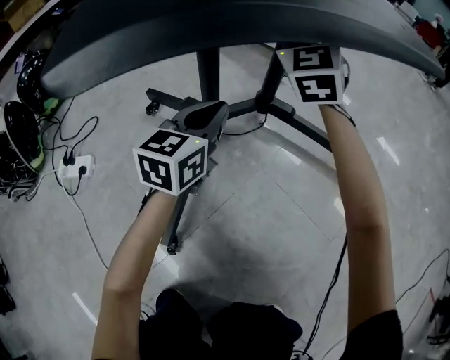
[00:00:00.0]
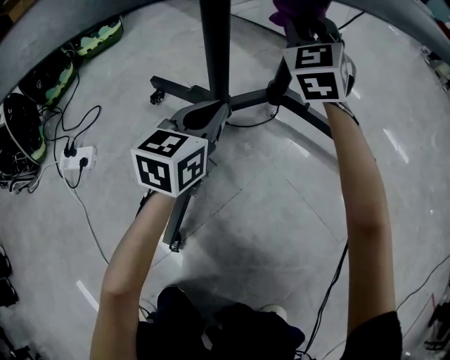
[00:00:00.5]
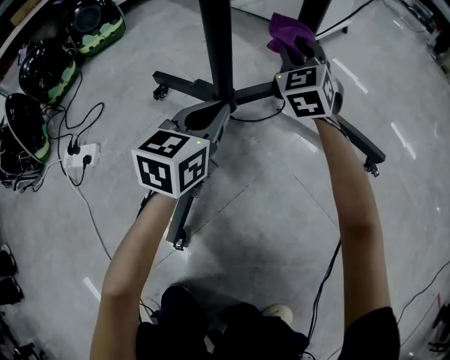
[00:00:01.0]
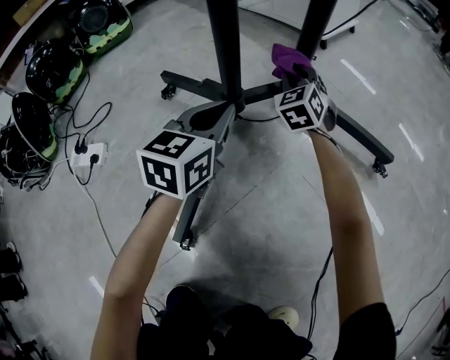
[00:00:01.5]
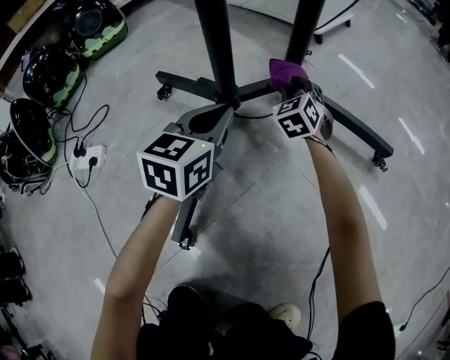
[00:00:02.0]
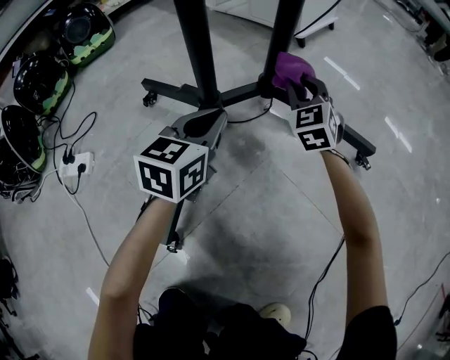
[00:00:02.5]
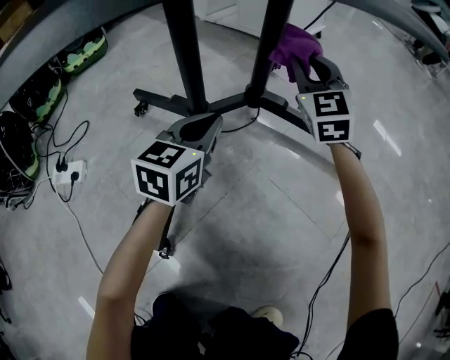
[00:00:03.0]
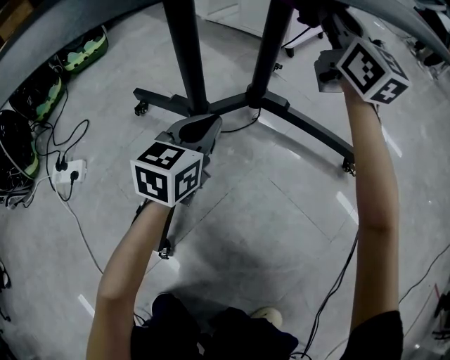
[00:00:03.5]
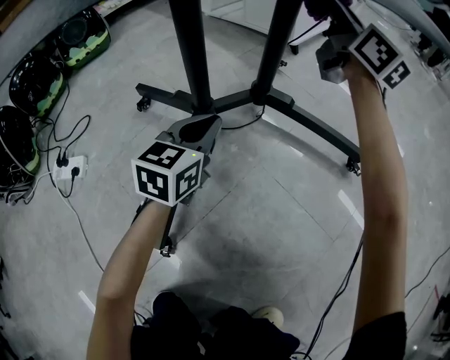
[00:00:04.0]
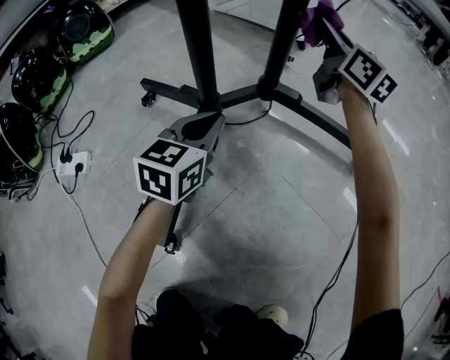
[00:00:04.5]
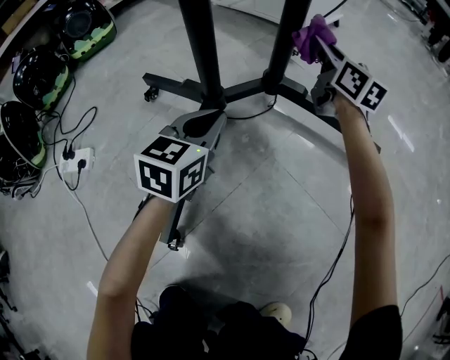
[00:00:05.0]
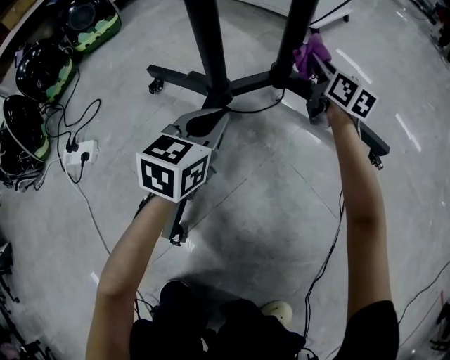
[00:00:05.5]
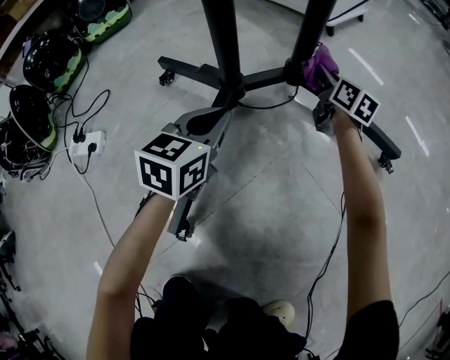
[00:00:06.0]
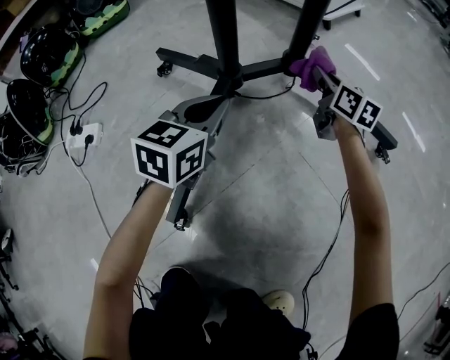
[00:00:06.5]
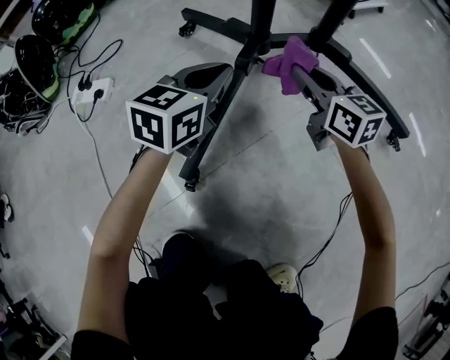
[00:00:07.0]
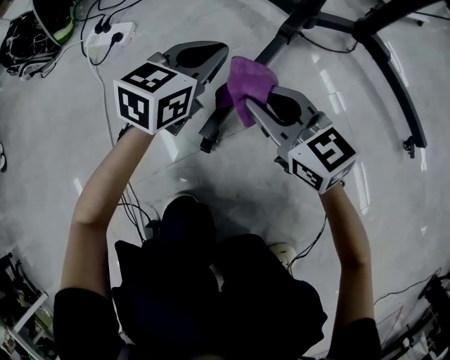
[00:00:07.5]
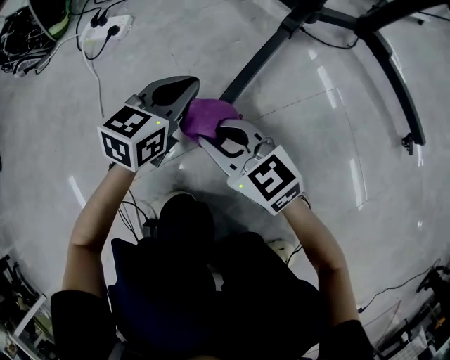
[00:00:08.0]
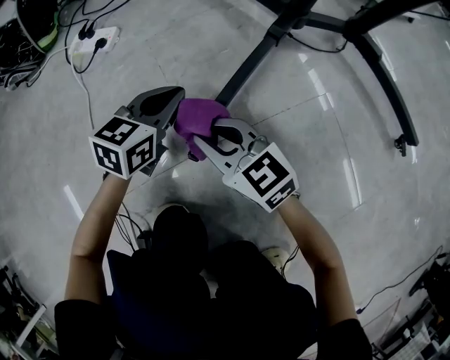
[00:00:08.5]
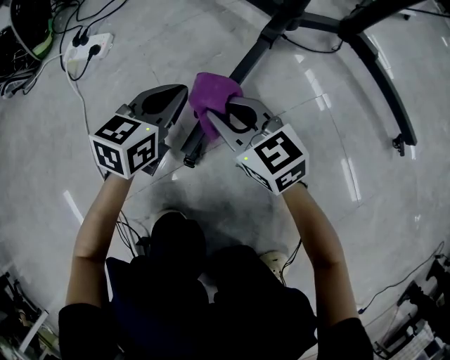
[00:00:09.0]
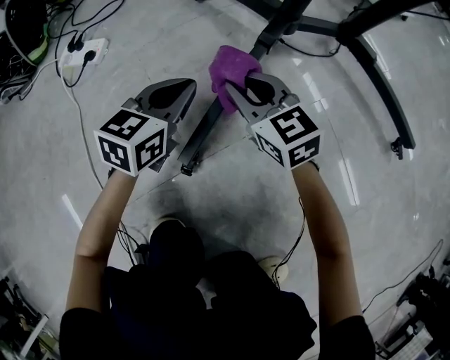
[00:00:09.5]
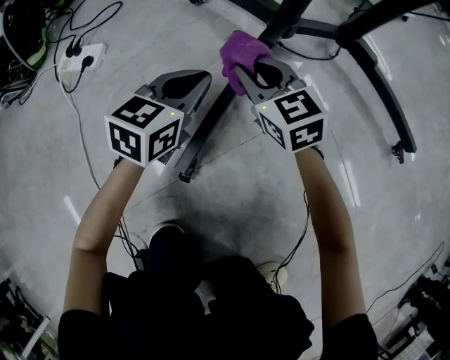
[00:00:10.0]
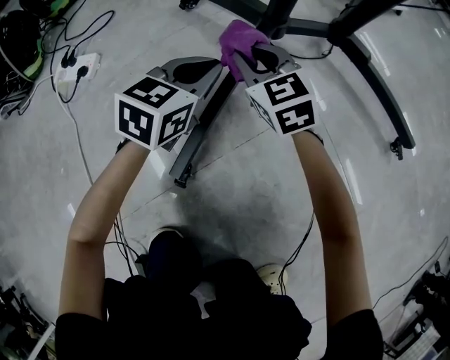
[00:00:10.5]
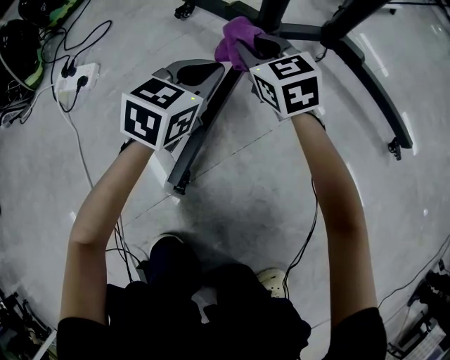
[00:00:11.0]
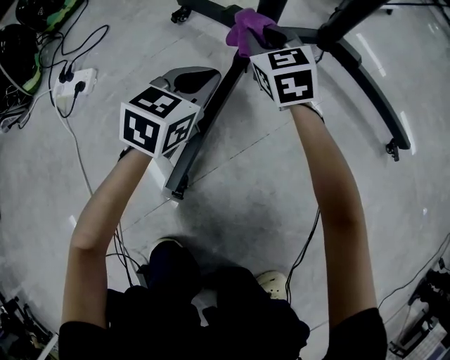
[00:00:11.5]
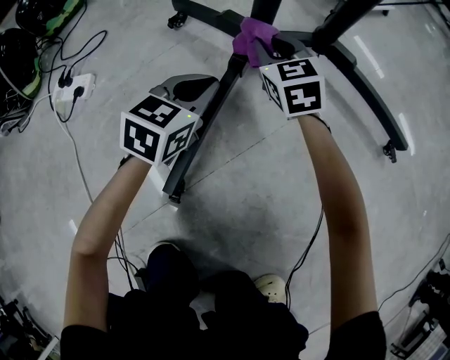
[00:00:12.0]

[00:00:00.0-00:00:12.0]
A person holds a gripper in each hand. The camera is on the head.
00:00:00.0 to 00:00:02.0: The right gripper shifts approximately 35 cm downward, and changes its angle by about 30 degrees, while the left gripper is displaced downward by roughly 10 cm.
00:00:02.0 to 00:00:04.0: The right gripper moves upward, approximately 35 cm, and tips its fingers upward by approximately 50 degrees.
00:00:04.0 to 00:00:06.0: The right gripper goes about 35 cm downward, and tips its fingers downward by about 30 degrees; the left gripper shifts by some 5 cm.
00:00:06.0 to 00:00:08.0: The right gripper ends up about 60 cm from where it was, and swivels about 70 degrees. The left gripper shifts by approximately 25 cm.
00:00:08.0 to 00:00:10.0: The left gripper shifts roughly 10 cm to the right and forward, while the right gripper goes approximately 25 cm forward and to the right, and changes its angle by roughly 20 degrees.
00:00:10.0 to 00:00:12.0: The left gripper heads to the right, covering some 5 cm; the right gripper is displaced forward and to the right by roughly 15 cm.

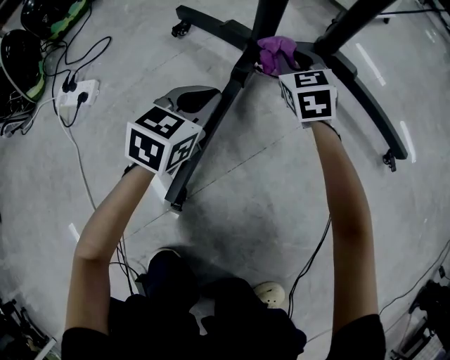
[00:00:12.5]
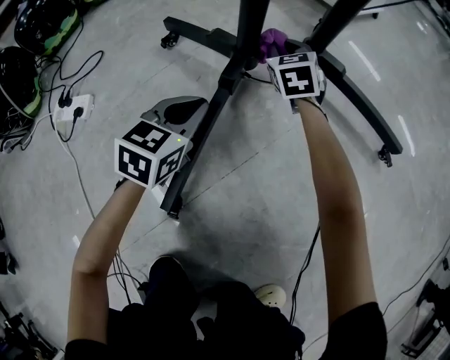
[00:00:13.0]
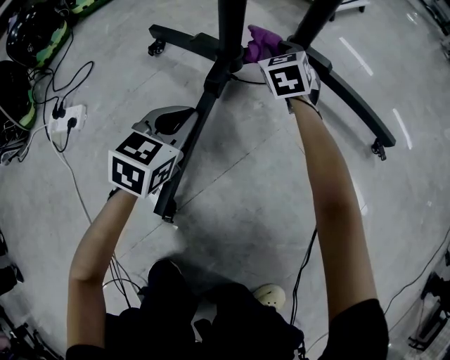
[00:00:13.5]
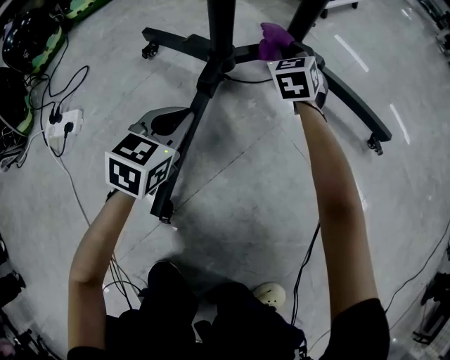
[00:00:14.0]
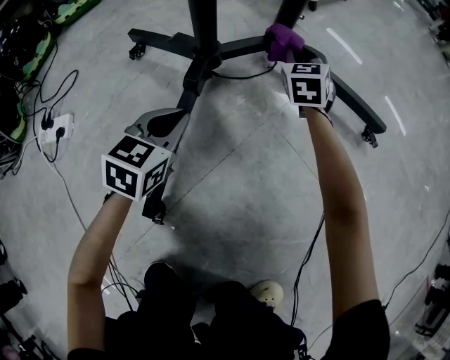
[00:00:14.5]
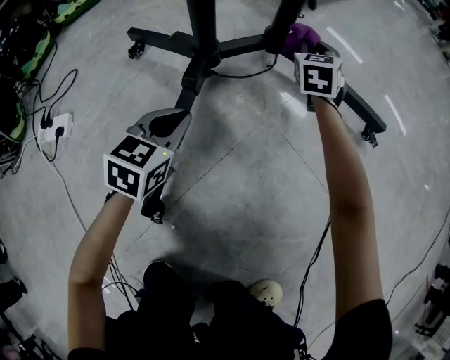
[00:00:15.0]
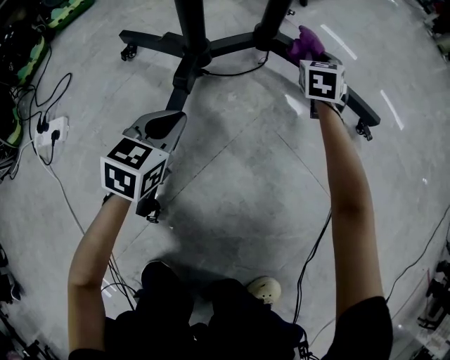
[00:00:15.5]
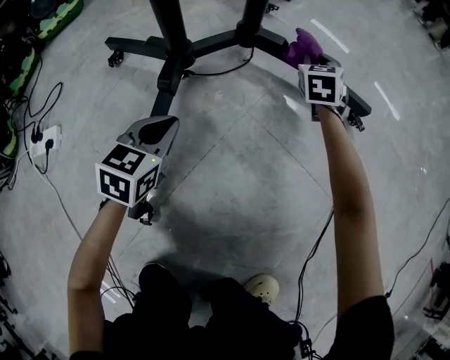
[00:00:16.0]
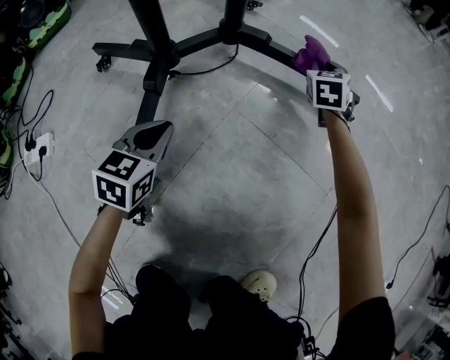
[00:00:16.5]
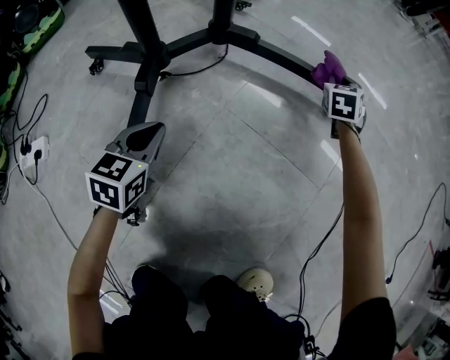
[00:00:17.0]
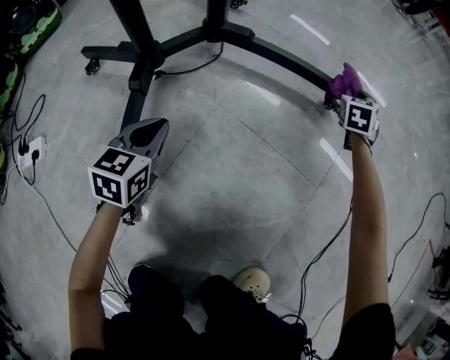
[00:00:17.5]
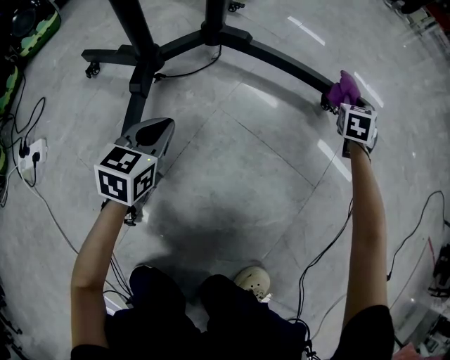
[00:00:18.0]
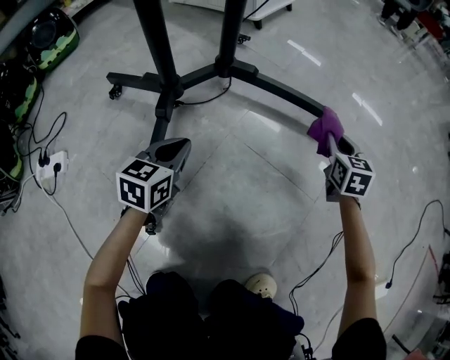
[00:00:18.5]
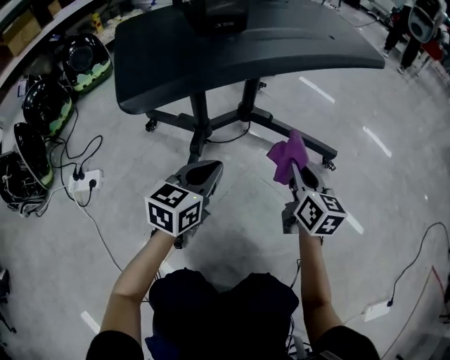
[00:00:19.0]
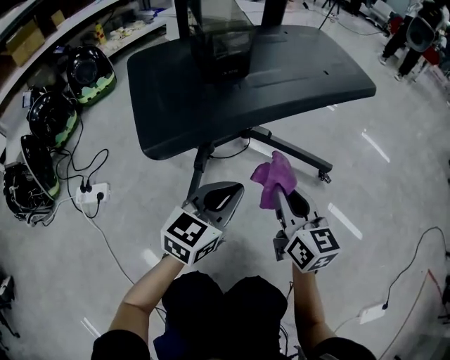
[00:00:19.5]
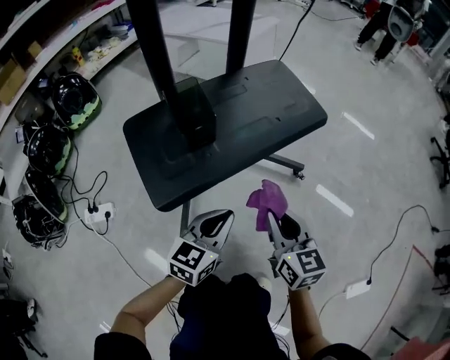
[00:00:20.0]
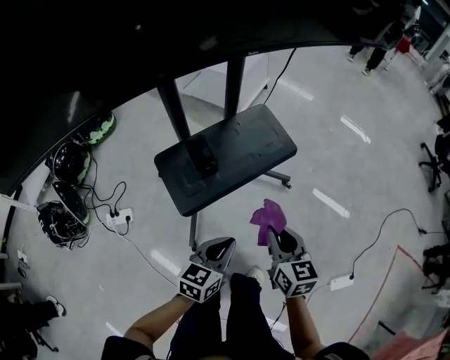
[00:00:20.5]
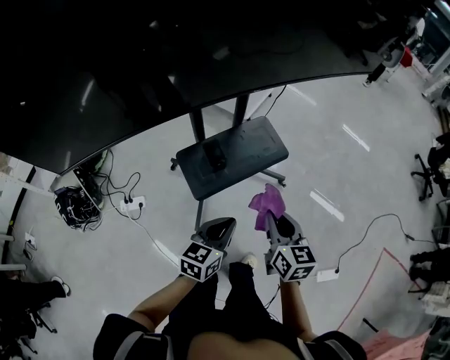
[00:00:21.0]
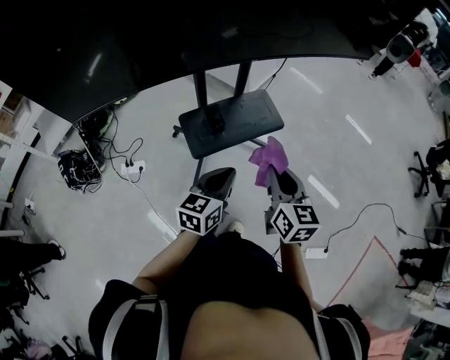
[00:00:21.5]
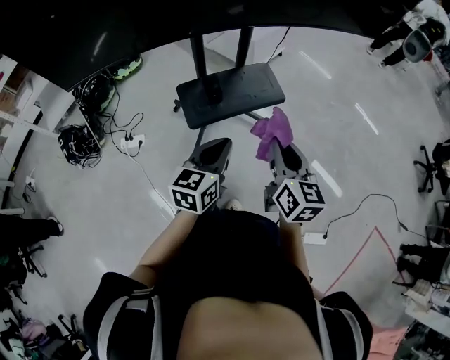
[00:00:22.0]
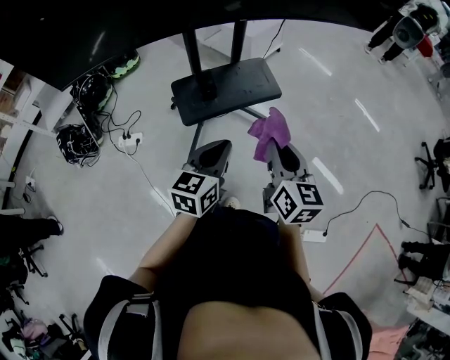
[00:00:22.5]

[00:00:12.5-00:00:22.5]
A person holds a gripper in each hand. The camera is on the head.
00:00:12.5 to 00:00:14.5: The right gripper heads to the right and forward, covering approximately 15 cm, and changes its angle by approximately 20 degrees.
00:00:14.5 to 00:00:16.5: The right gripper heads to the right, covering some 20 cm, while the left gripper shifts about 5 cm to the right.
00:00:16.5 to 00:00:18.5: The right gripper moves backward, to the right and upward, approximately 20 cm. Meanwhile the left gripper moves roughly 5 cm.
00:00:18.5 to 00:00:20.5: The right gripper shifts about 60 cm upward and backward, and rotates some 20 degrees, while the left gripper goes about 50 cm upward.
00:00:20.5 to 00:00:22.5: The grippers both shift upward by some 25 cm. The left gripper rotates about 20 degrees.

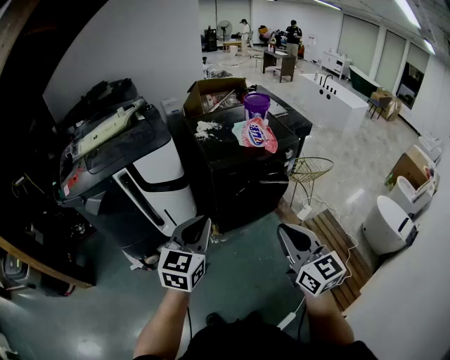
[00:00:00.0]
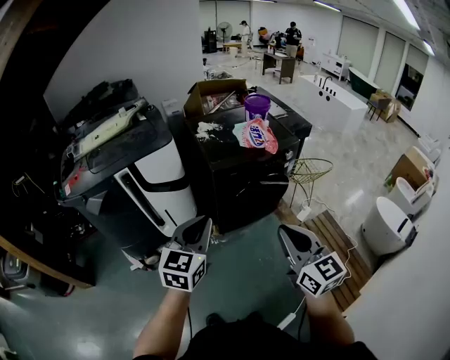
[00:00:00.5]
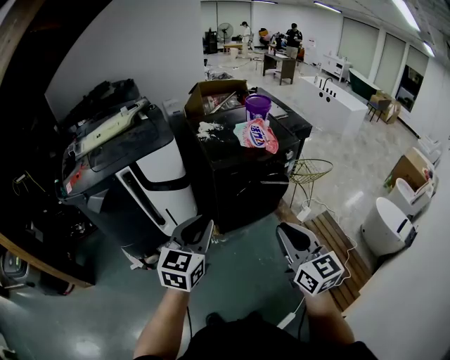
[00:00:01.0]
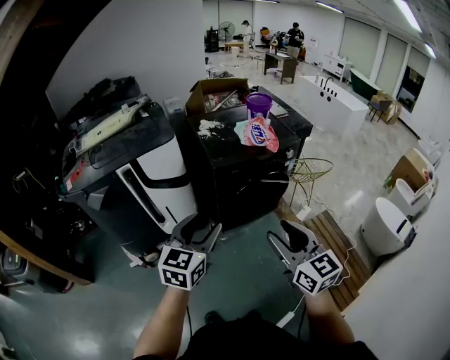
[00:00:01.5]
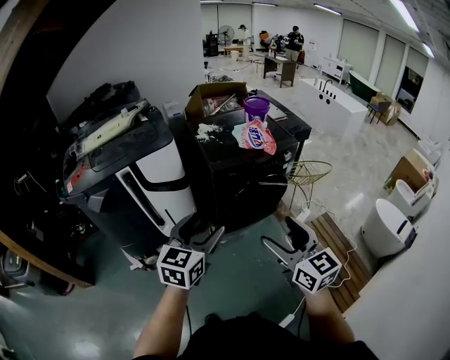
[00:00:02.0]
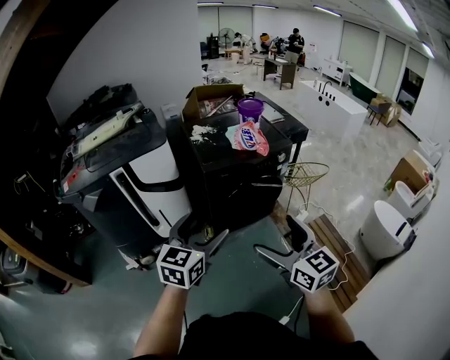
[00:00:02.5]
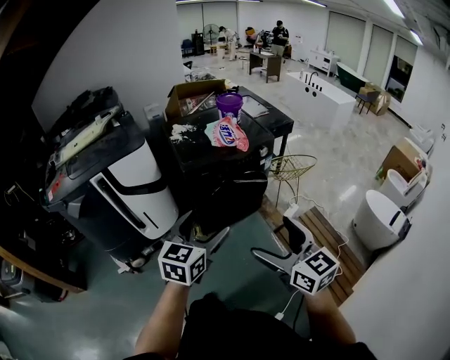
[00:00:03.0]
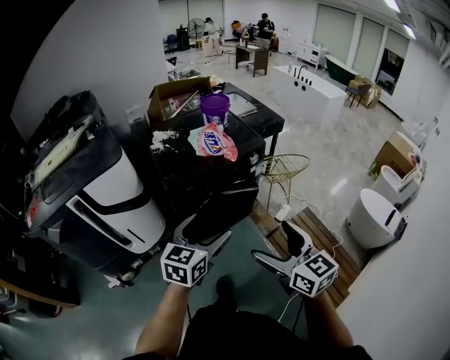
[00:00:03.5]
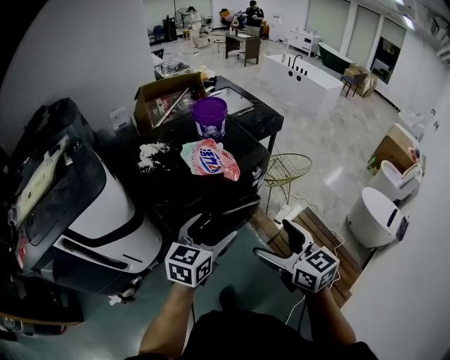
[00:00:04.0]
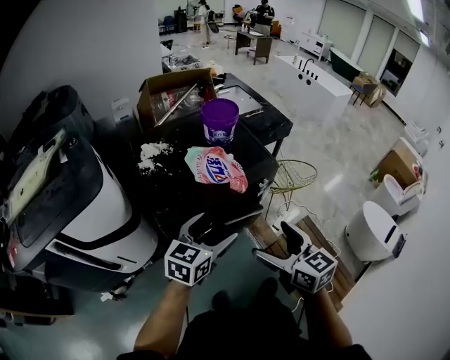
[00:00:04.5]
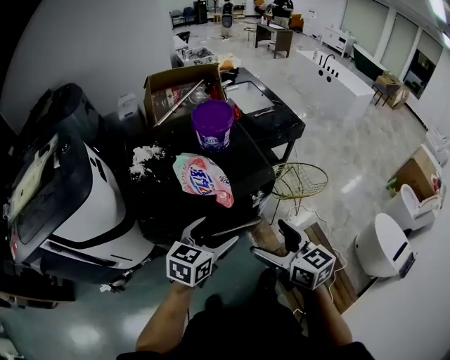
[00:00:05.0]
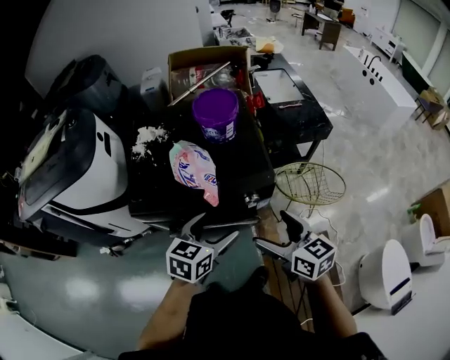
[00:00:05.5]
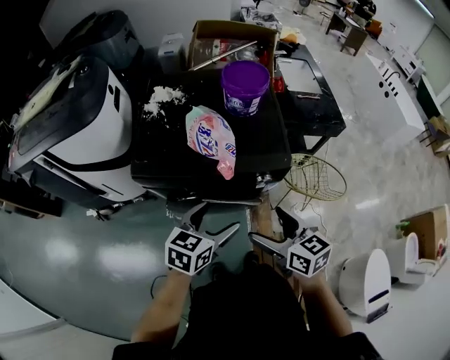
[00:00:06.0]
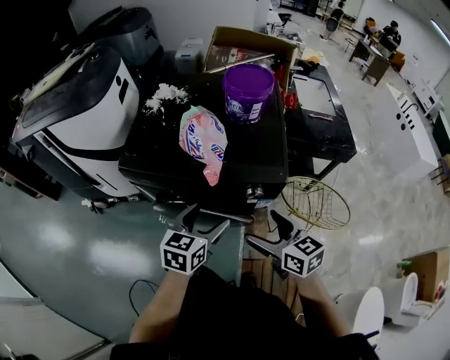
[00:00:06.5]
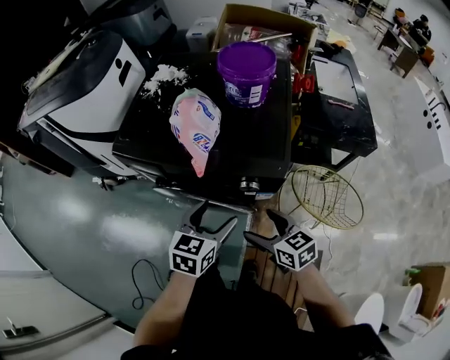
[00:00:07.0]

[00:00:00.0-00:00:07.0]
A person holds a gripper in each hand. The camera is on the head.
00:00:00.0 to 00:00:02.0: The right gripper opens; the left gripper opens up.
00:00:02.0 to 00:00:03.5: Both grippers move to the right and forward, about 20 cm.
00:00:03.5 to 00:00:05.0: Both grippers travel together forward, some 30 cm.
00:00:05.0 to 00:00:07.0: The right gripper goes roughly 25 cm downward, and rotates approximately 40 degrees; the left gripper shifts about 15 cm downward, and swivels roughly 40 degrees.
